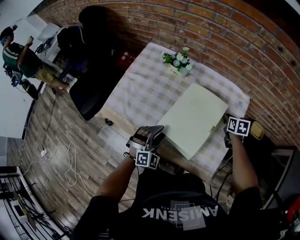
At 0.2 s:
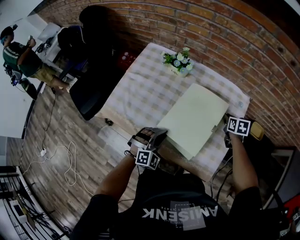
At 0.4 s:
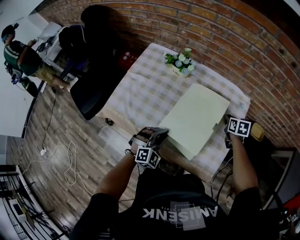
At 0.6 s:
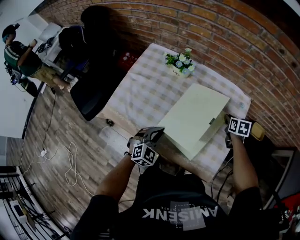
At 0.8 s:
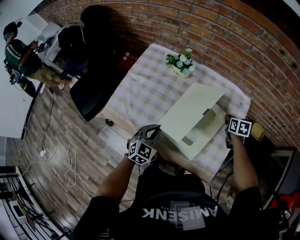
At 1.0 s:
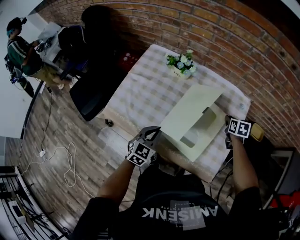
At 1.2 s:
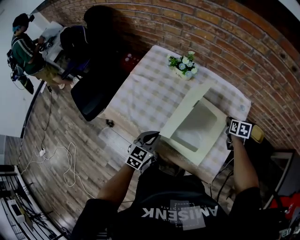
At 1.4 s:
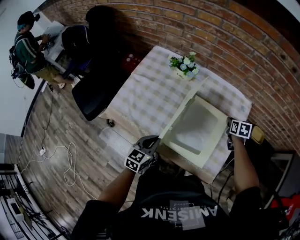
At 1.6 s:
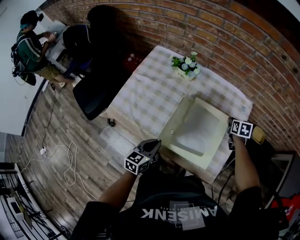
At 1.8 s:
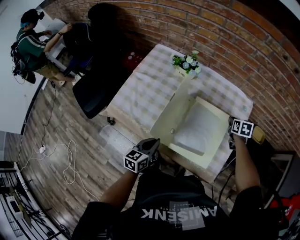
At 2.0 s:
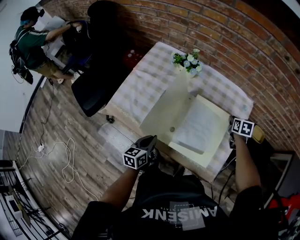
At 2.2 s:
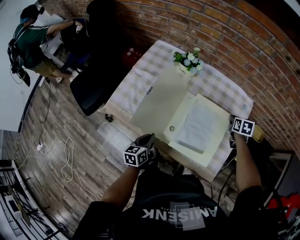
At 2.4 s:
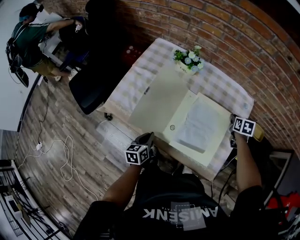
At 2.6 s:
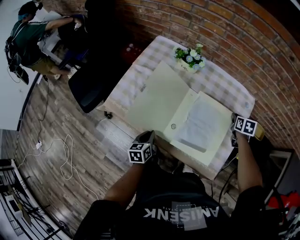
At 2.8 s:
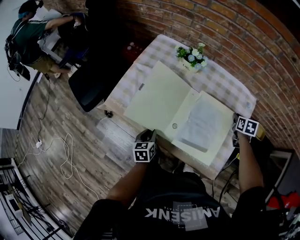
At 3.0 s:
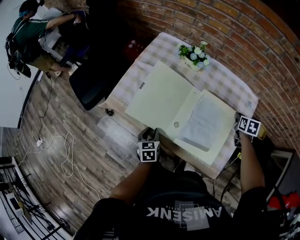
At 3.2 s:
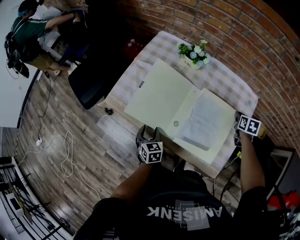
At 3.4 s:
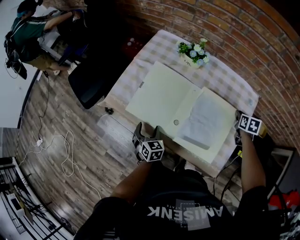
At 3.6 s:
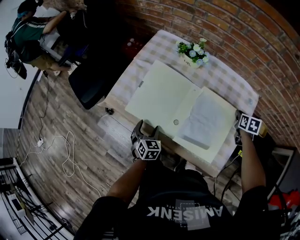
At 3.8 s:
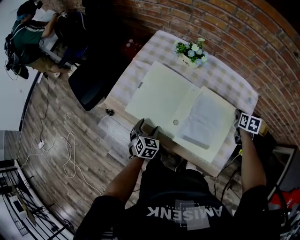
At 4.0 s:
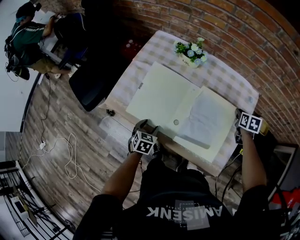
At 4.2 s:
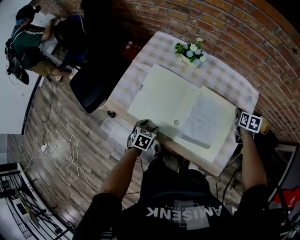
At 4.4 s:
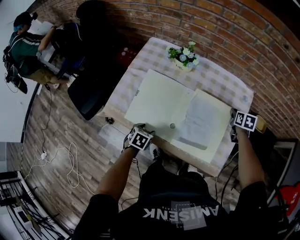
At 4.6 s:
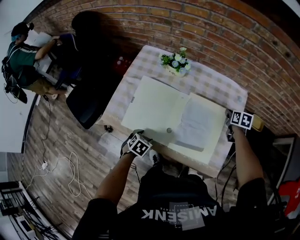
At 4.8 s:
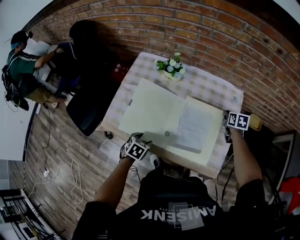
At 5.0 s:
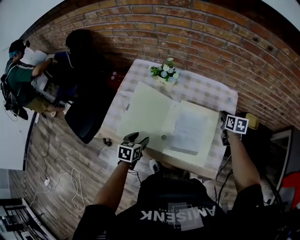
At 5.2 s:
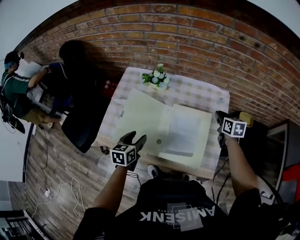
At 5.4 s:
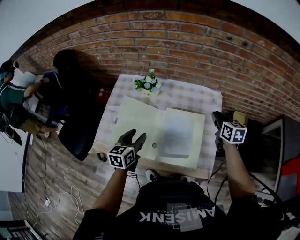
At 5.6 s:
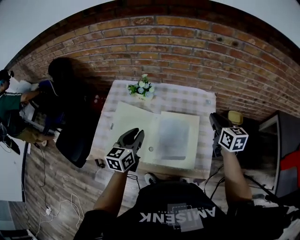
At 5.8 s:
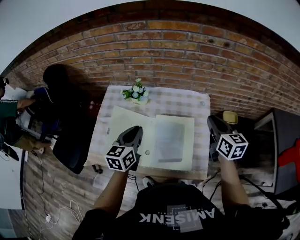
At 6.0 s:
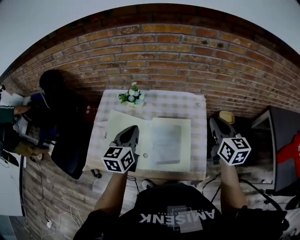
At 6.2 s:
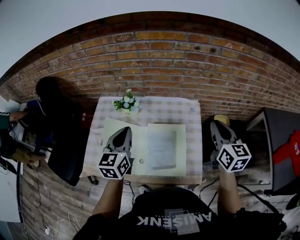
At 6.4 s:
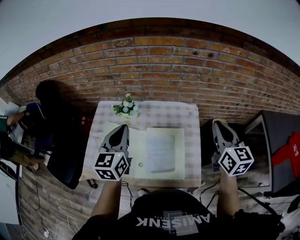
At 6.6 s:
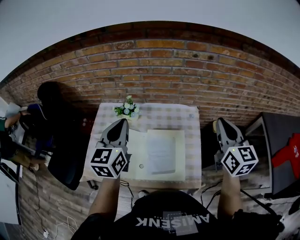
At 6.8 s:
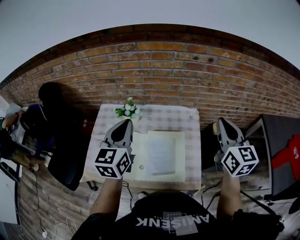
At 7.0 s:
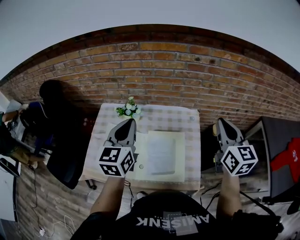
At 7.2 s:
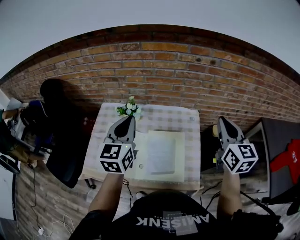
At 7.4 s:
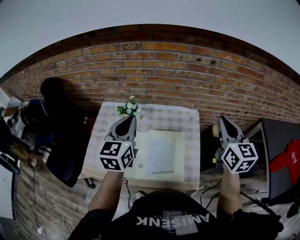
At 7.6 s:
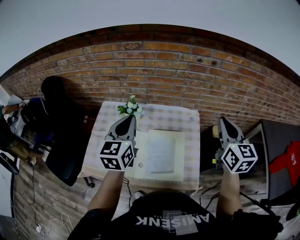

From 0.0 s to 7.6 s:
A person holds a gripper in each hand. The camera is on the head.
From 0.0 s to 1.6 s: The left gripper heads backward and to the left, covering some 10 cm, rotates around the line of its fingers by roughly 70 degrees, counterclockwise from behind, and closes.
From 1.6 s to 3.0 s: The left gripper shifts approximately 10 cm downward and to the left, and rotates approximately 30 degrees.
From 3.0 s to 4.6 s: The left gripper turns by approximately 50 degrees, and opens.
From 4.6 s to 6.0 s: The left gripper travels upward and forward by approximately 35 cm, tilts its fingers roughly 50 degrees upward, and closes up, while the right gripper heads upward and backward, covering roughly 30 cm, and tips its fingers upward by approximately 40 degrees.
From 6.0 s to 7.6 s: Both grippers travel together upward, roughly 15 cm.

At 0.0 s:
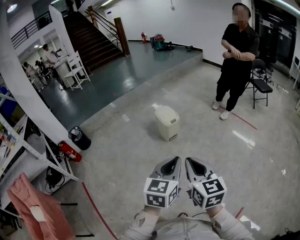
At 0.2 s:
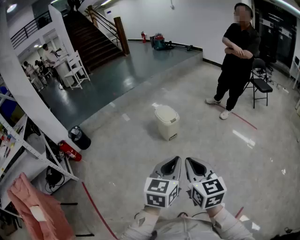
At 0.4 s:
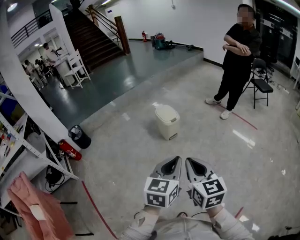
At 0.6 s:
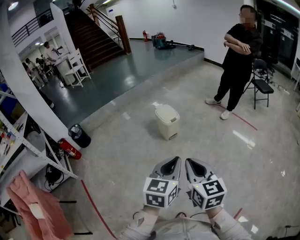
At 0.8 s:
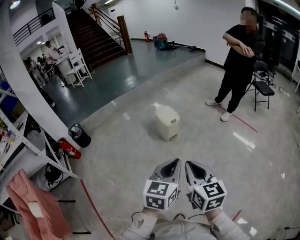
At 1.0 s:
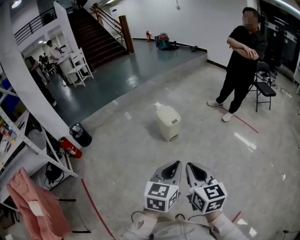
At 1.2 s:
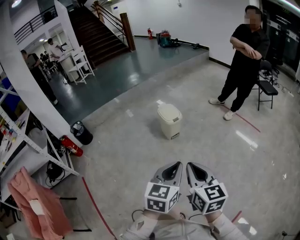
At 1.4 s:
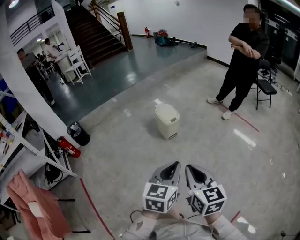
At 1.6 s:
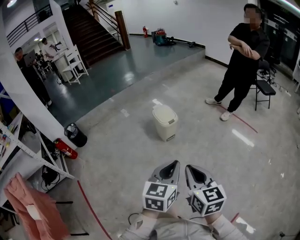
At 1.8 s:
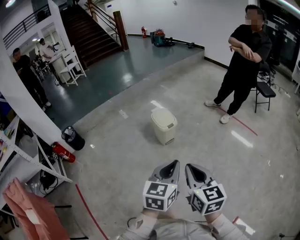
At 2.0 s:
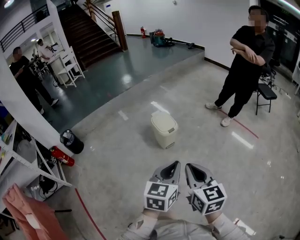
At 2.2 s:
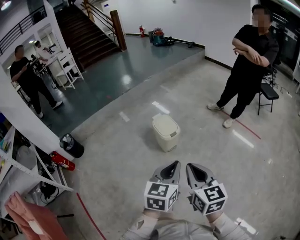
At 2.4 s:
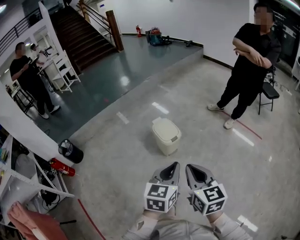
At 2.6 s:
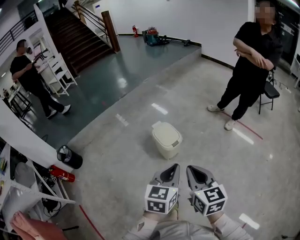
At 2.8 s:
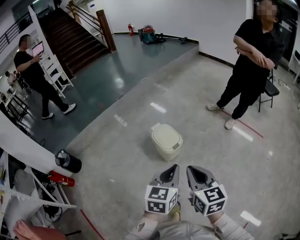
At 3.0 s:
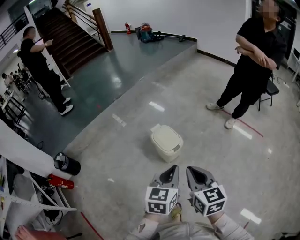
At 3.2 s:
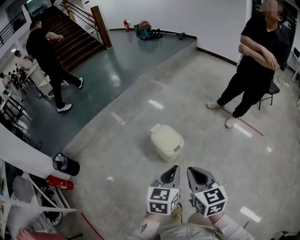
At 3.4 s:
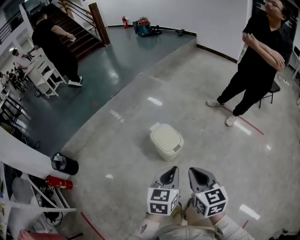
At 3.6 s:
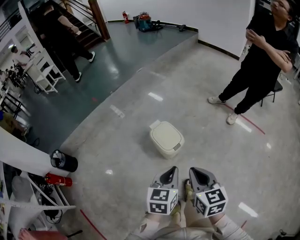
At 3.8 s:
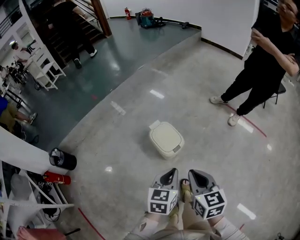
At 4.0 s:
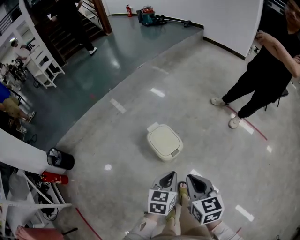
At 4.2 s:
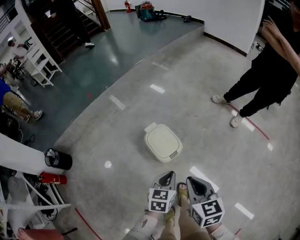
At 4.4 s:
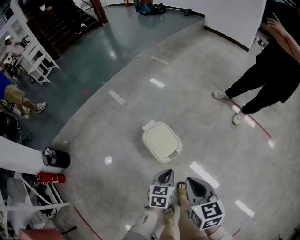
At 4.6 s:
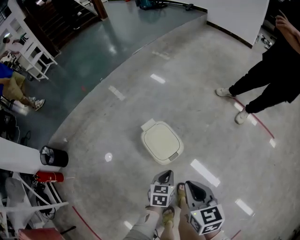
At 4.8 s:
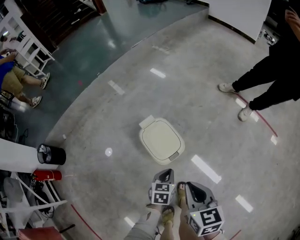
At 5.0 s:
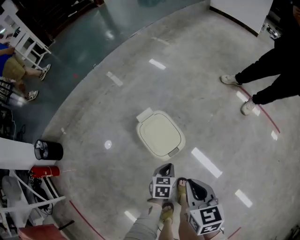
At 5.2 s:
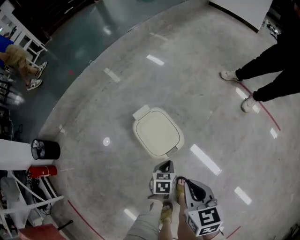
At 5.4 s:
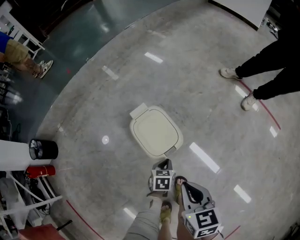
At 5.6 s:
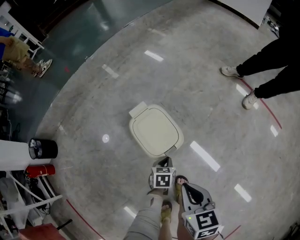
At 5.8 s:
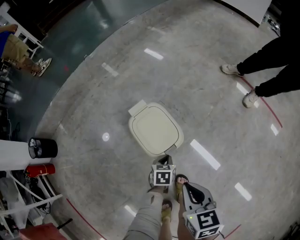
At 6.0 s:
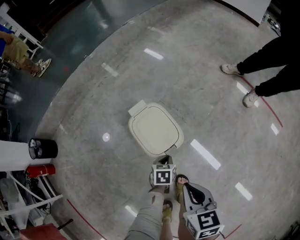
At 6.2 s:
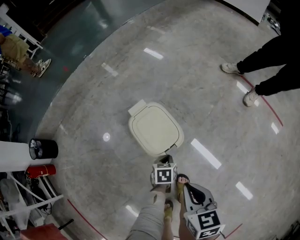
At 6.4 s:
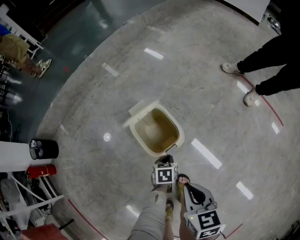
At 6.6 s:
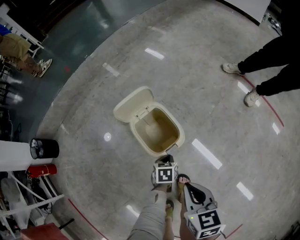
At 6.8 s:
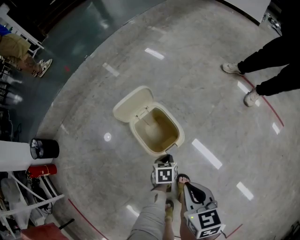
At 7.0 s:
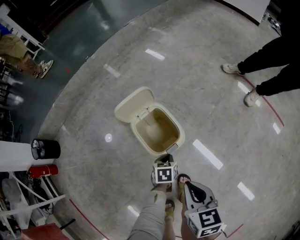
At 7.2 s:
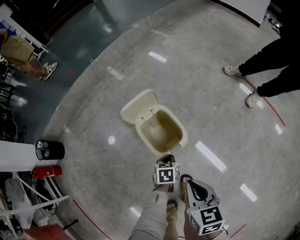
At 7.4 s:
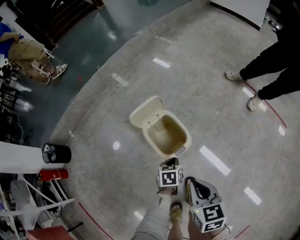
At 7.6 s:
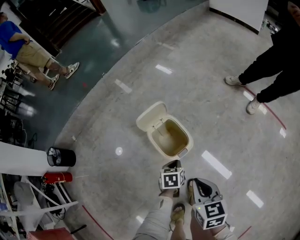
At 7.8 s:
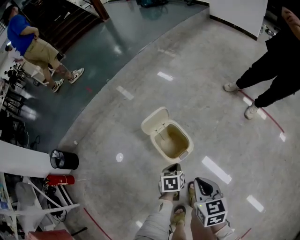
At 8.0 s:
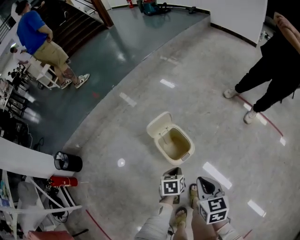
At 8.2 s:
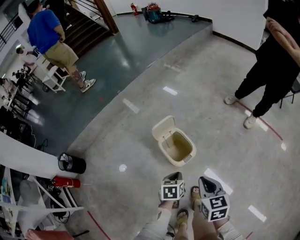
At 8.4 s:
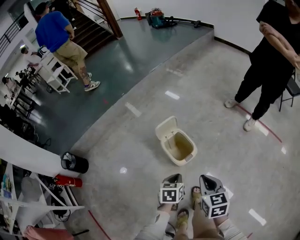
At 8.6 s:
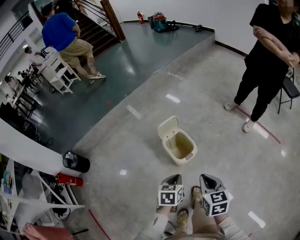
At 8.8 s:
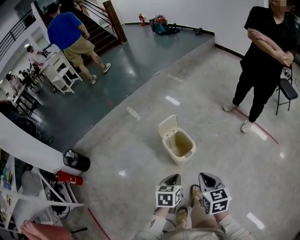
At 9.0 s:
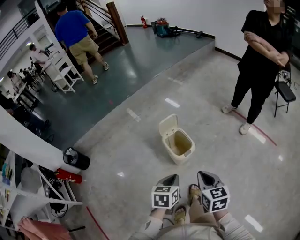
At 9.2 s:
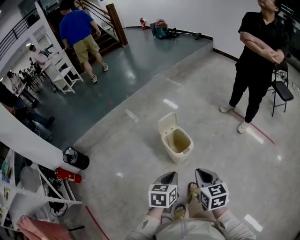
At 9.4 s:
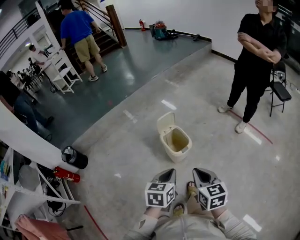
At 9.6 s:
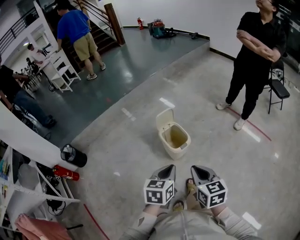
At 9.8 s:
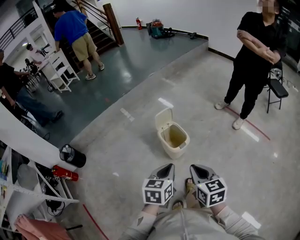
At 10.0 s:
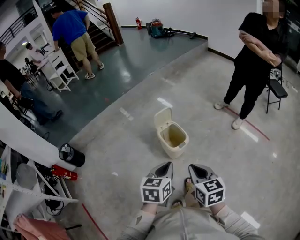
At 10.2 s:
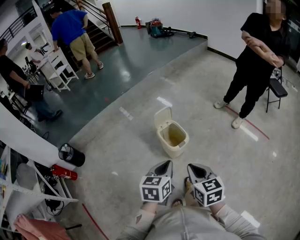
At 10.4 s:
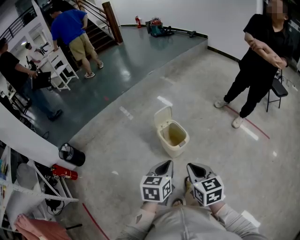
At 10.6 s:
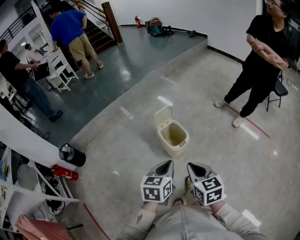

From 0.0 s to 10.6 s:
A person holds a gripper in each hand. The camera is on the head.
From 0.0 s to 1.6 s: The two grippers go some 5 cm forward.
From 1.6 s to 3.0 s: Both grippers move forward, about 35 cm.
From 3.0 s to 4.6 s: The right gripper heads forward and downward, covering about 25 cm. Meanwhile the left gripper heads downward and forward, covering roughly 35 cm, and changes its angle by roughly 20 degrees.
From 4.6 s to 6.0 s: Both grippers travel together downward, approximately 15 cm.
From 6.0 s to 7.6 s: The left gripper goes approximately 10 cm upward, while the right gripper shifts about 5 cm upward.
From 7.6 s to 9.0 s: The left gripper shifts approximately 35 cm upward and backward. Meanwhile the right gripper travels upward and backward by roughly 20 cm.
From 9.0 s to 10.6 s: The right gripper travels backward by about 5 cm. The left gripper is displaced upward by some 5 cm.

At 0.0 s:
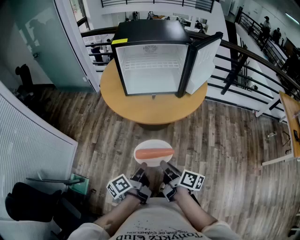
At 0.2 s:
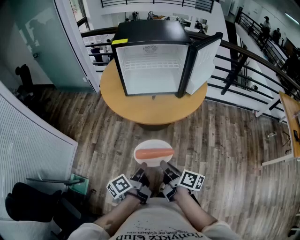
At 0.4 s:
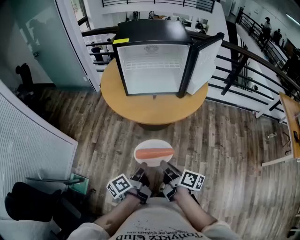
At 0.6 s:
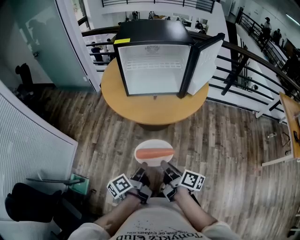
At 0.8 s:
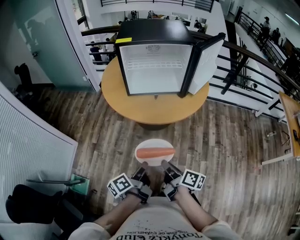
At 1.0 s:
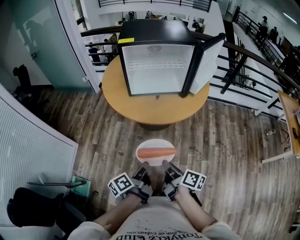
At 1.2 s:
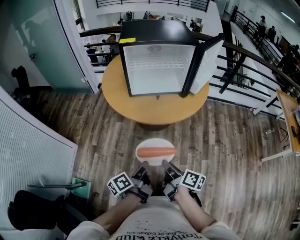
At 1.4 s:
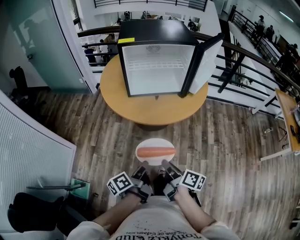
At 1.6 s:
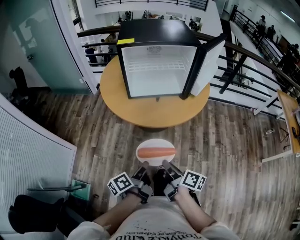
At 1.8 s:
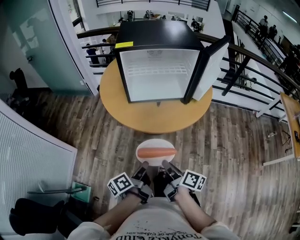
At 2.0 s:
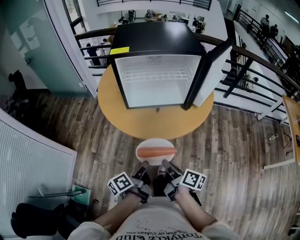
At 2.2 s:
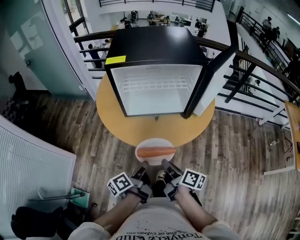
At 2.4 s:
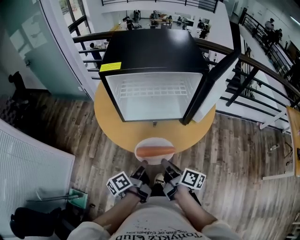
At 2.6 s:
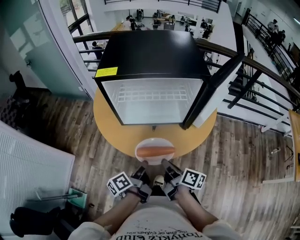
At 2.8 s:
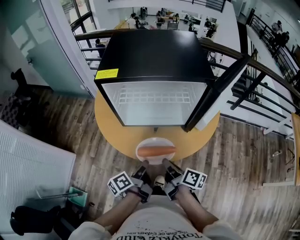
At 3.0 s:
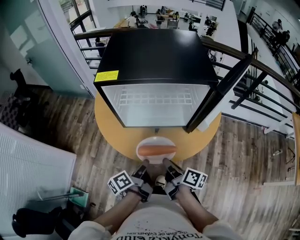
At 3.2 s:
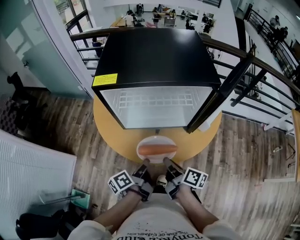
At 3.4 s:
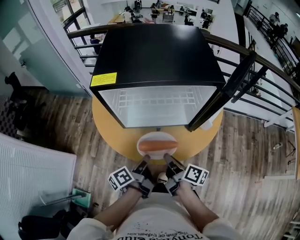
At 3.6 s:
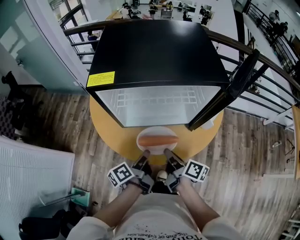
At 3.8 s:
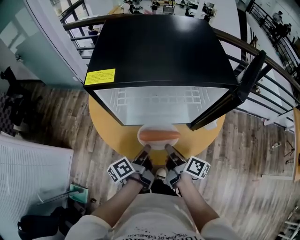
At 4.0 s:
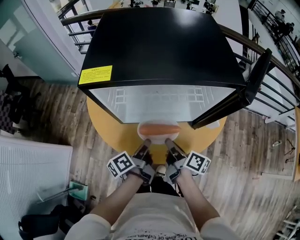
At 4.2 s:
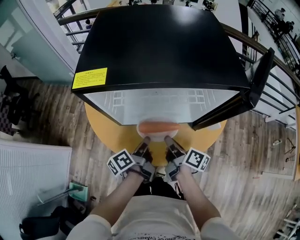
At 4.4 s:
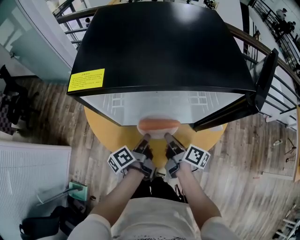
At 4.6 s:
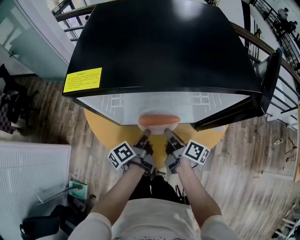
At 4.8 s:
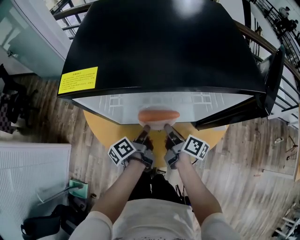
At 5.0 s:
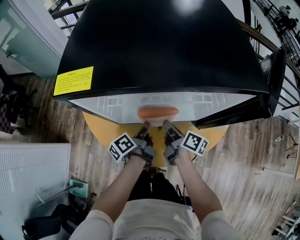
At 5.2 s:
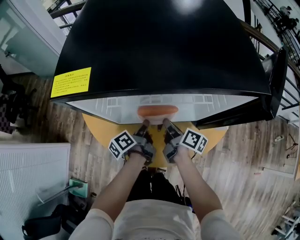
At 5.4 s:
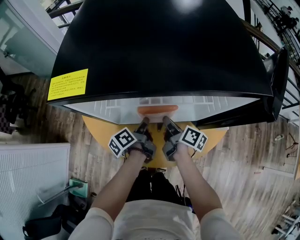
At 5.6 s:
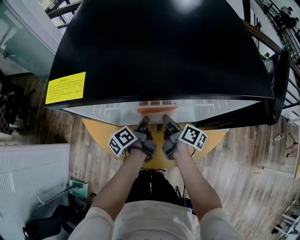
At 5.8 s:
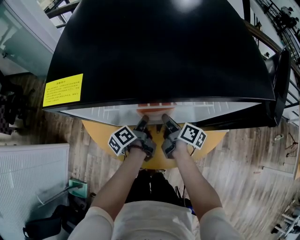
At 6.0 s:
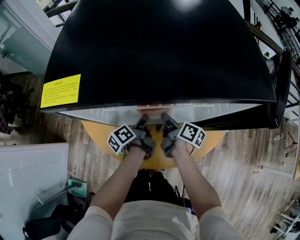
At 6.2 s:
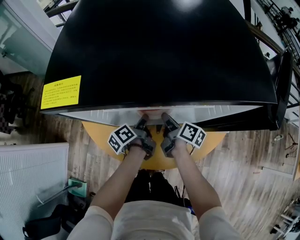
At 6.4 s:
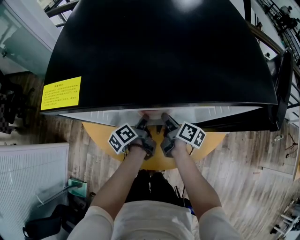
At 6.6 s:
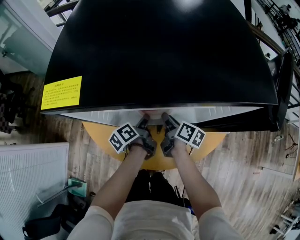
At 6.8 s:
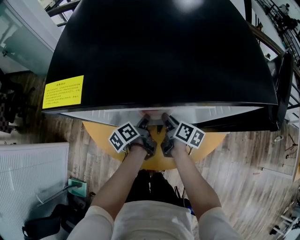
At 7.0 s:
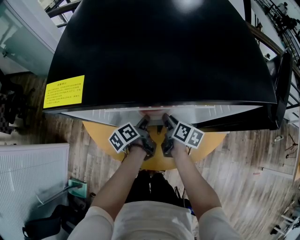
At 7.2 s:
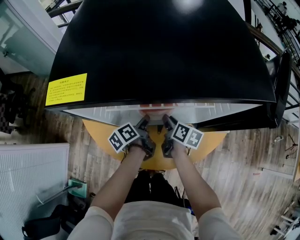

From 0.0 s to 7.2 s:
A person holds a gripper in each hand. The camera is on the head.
From 1.4 s to 2.8 s: The right gripper ends up about 30 cm from where it was.
From 2.8 s to 4.4 s: The right gripper moves some 20 cm.
From 4.4 s to 5.8 s: The right gripper shifts by about 10 cm.
From 5.8 s to 7.2 s: The right gripper changes its angle by roughly 20 degrees.
